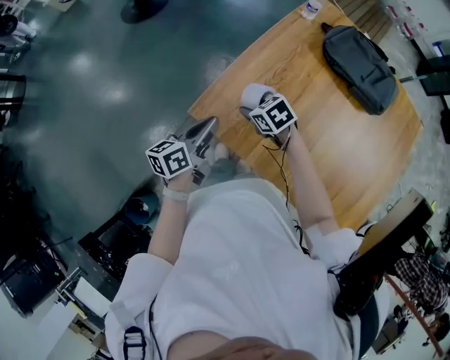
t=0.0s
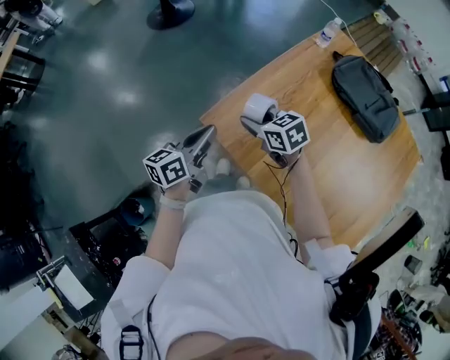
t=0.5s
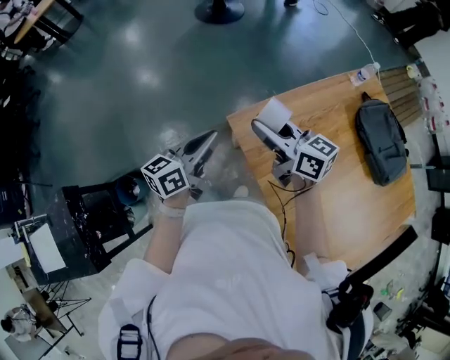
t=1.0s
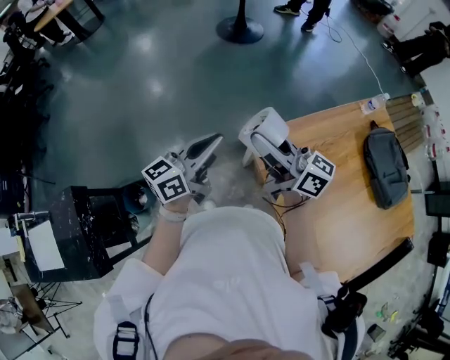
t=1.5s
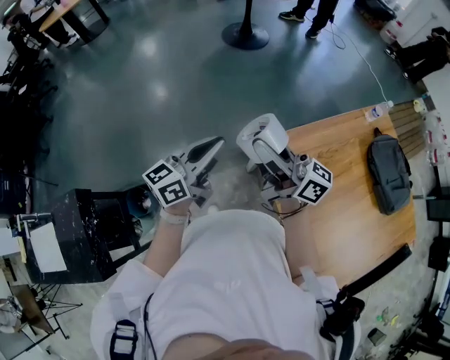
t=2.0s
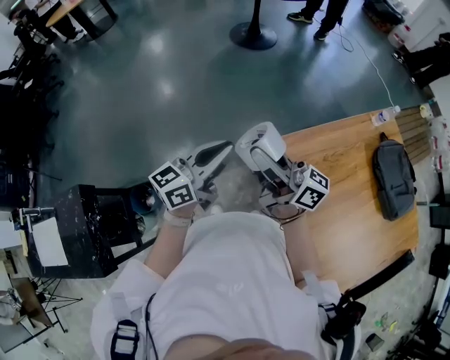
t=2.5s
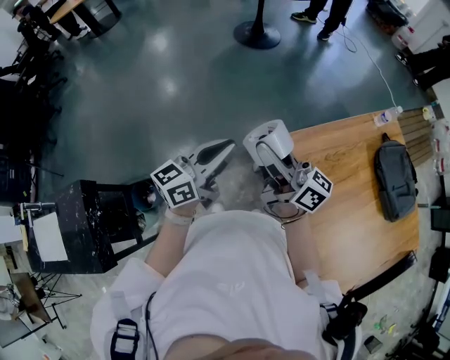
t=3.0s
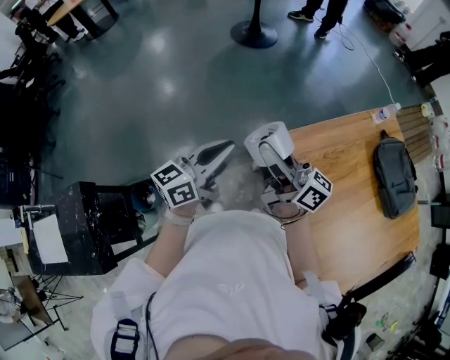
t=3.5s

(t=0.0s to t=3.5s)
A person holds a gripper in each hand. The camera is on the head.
t=0.0s - t=2.0s: The right gripper shifts some 40 cm upward and to the left, and tips its fingers upward by roughly 70 degrees. Meanwhile the left gripper goes about 30 cm to the left and upward, and turns by roughly 30 degrees.
t=2.0s - t=3.5s: The grippers make only small movements.

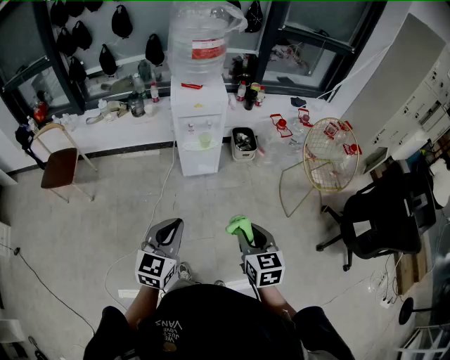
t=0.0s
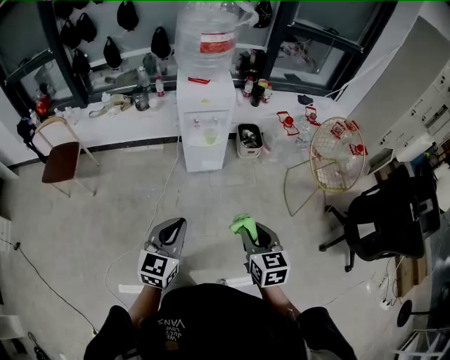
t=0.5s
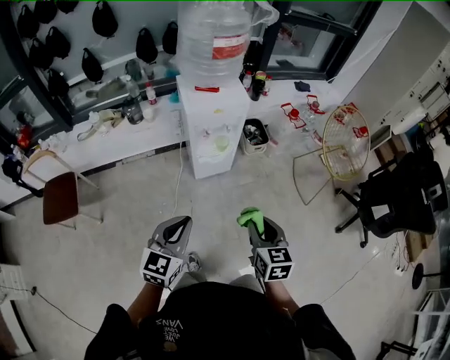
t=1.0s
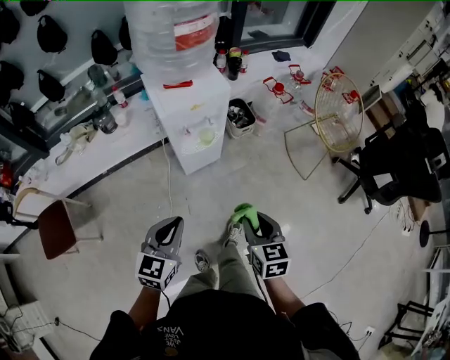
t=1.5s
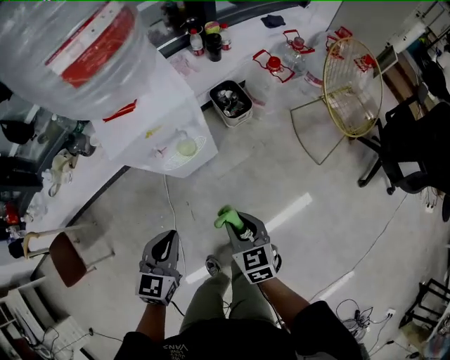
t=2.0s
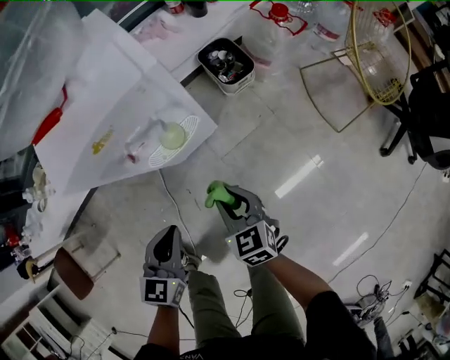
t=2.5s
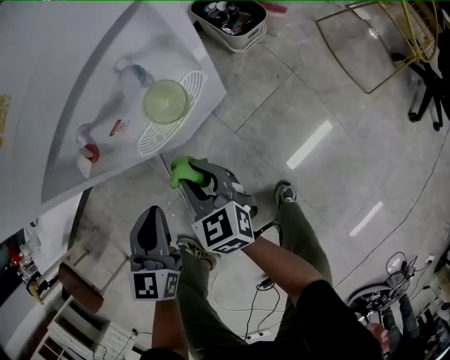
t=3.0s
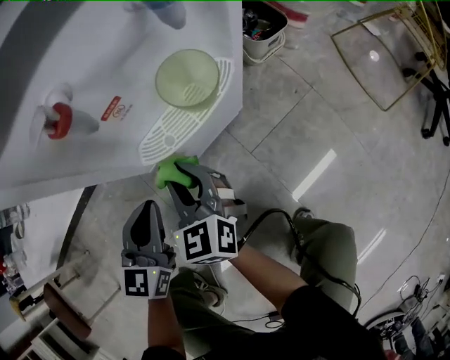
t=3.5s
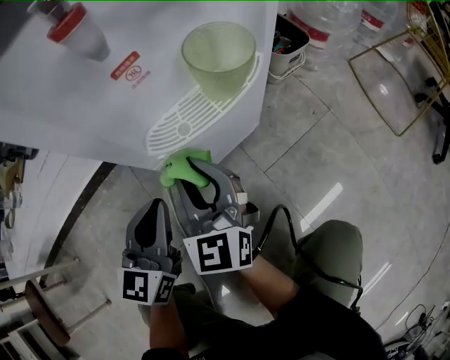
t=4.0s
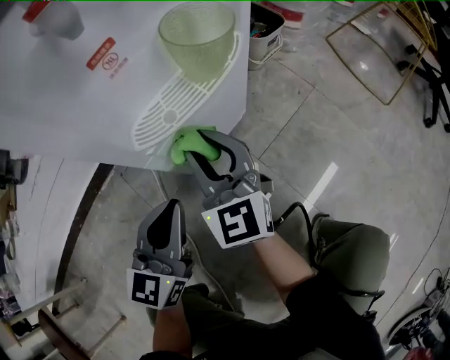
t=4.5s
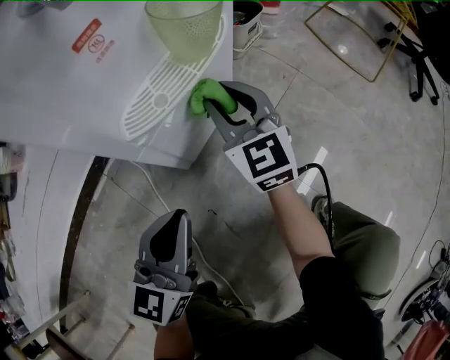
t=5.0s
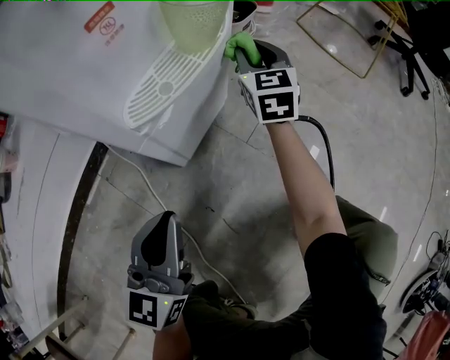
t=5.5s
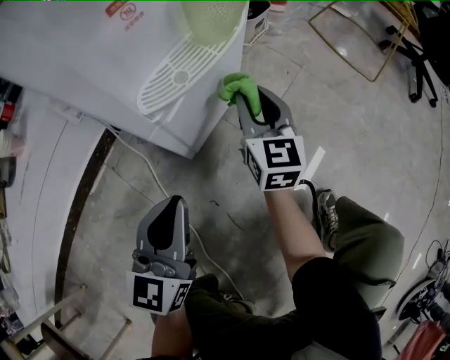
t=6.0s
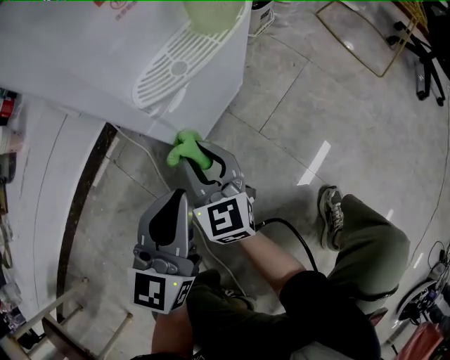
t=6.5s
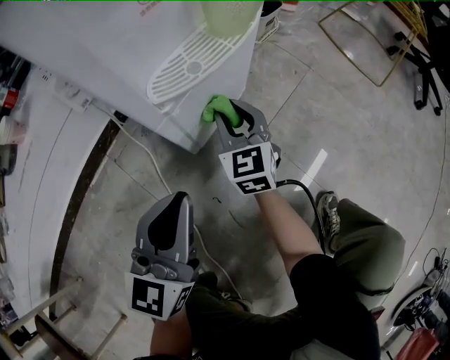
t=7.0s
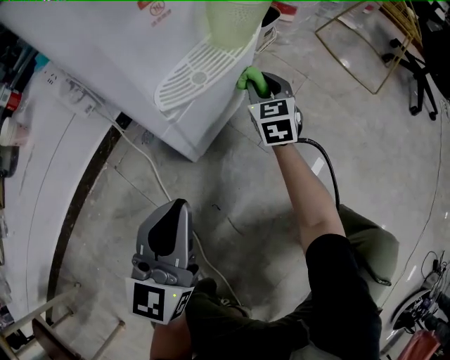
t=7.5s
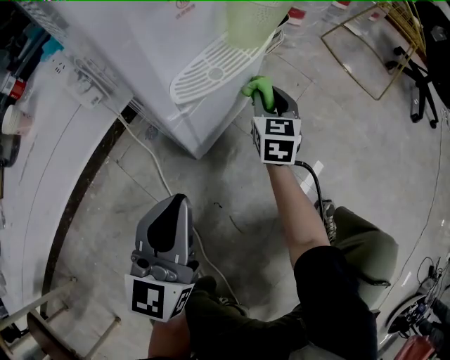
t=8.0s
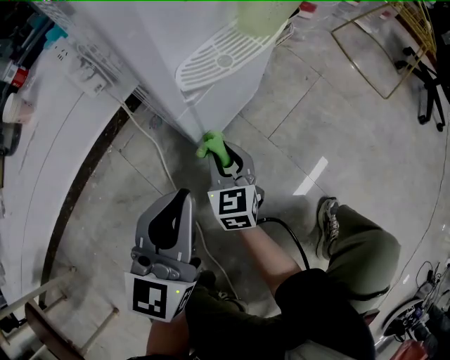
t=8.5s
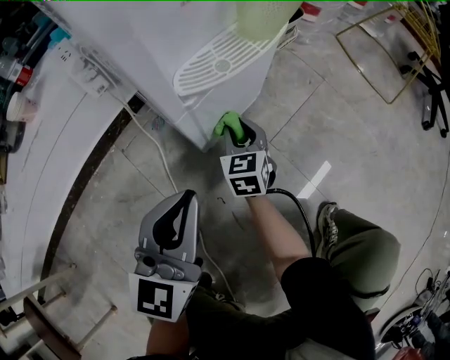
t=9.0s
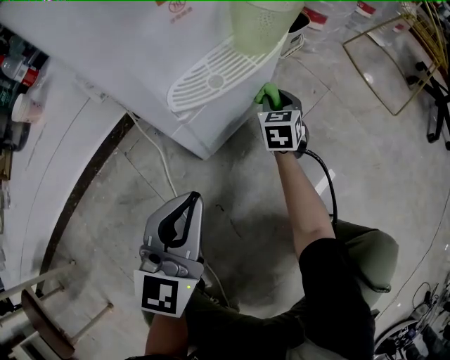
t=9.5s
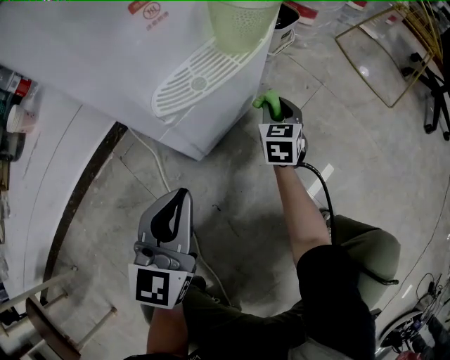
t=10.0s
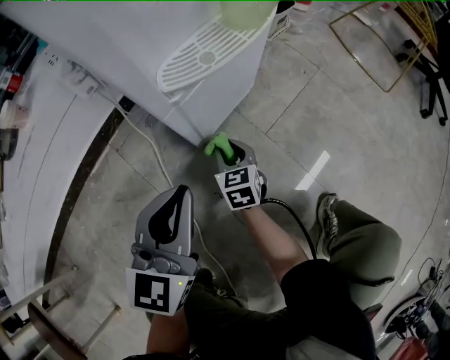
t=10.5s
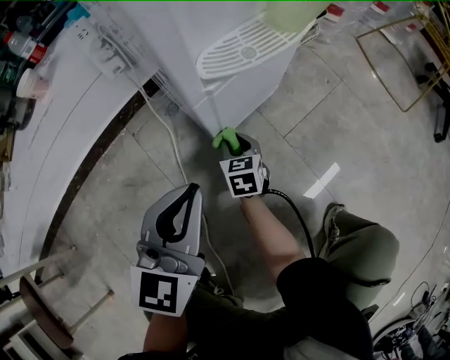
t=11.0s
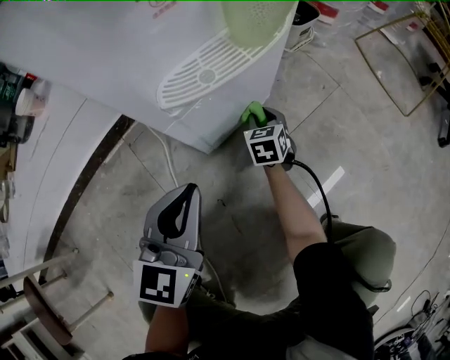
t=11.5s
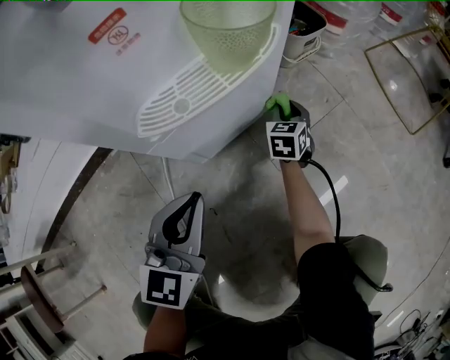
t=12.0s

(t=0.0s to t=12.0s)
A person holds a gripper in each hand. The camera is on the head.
t=0.0s - t=2.0s: The right gripper moves forward, downward and to the left, some 35 cm; the left gripper travels forward and downward by approximately 35 cm, and changes its angle by some 30 degrees.
t=2.0s - t=4.0s: The left gripper travels downward and forward by roughly 40 cm; the right gripper shifts approximately 50 cm downward, to the left and forward, and rotates roughly 30 degrees.
t=4.0s - t=6.0s: The right gripper rotates about 30 degrees.
t=6.0s - t=8.0s: The right gripper is displaced downward by some 5 cm, and travels backward and back again, roughly 10 cm each way.
t=8.0s - t=10.0s: The left gripper moves some 5 cm. The right gripper shifts some 5 cm downward, and moves roughly 15 cm backward and comes back.
t=10.0s - t=12.0s: The left gripper moves roughly 5 cm; the right gripper goes roughly 5 cm downward, and moves approximately 15 cm backward and comes back.

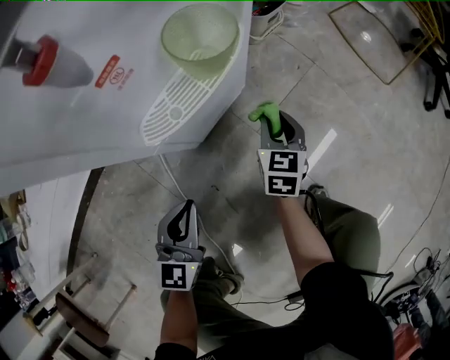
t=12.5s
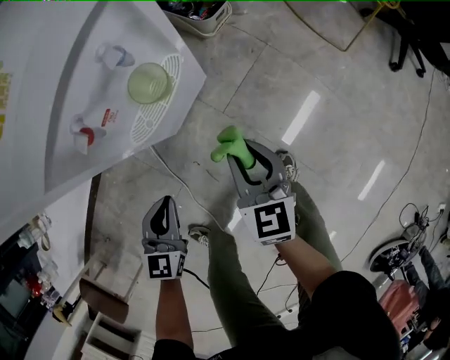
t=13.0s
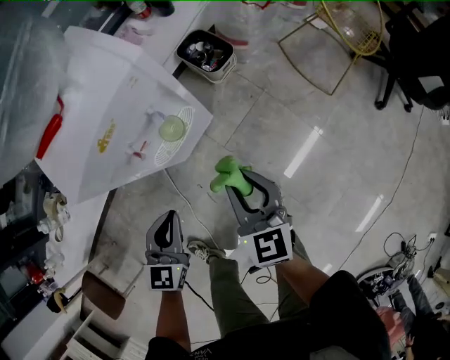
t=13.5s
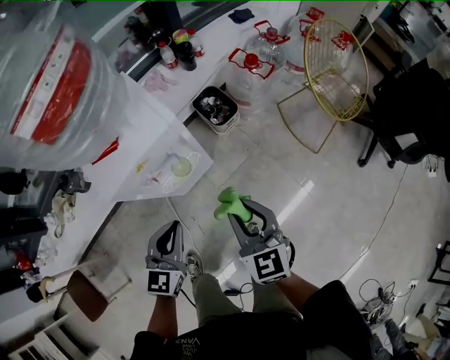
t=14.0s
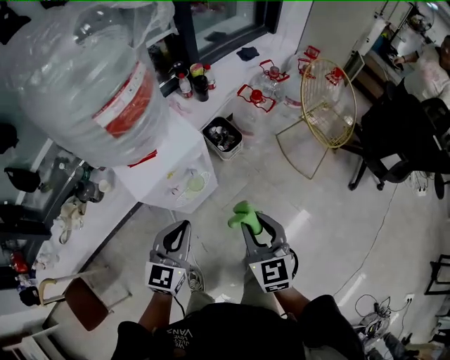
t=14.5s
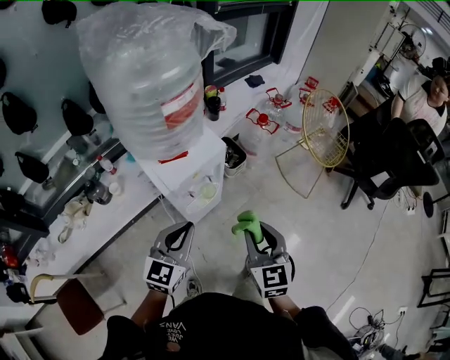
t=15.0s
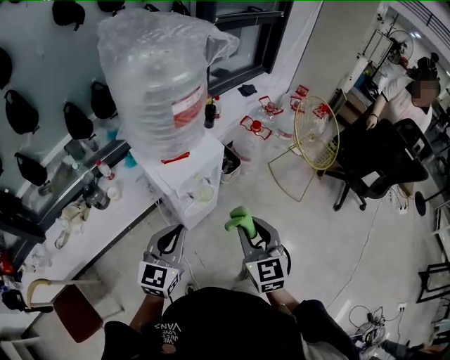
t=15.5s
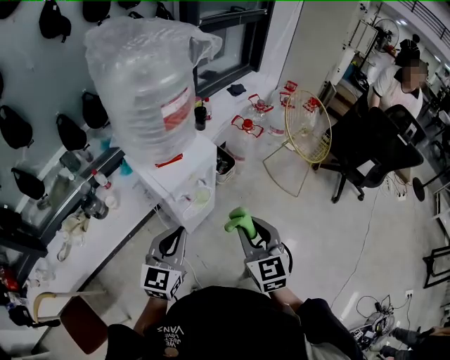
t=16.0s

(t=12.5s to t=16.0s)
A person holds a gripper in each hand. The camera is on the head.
t=12.5s - t=14.5s: Both grippers travel together upward, roughly 60 cm. The right gripper turns by about 30 degrees.
t=14.5s - t=16.0s: The left gripper shifts some 15 cm to the left, backward and upward. Meanwhile the right gripper moves backward, to the left and upward, approximately 15 cm.

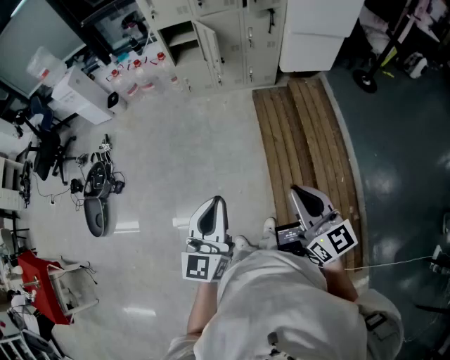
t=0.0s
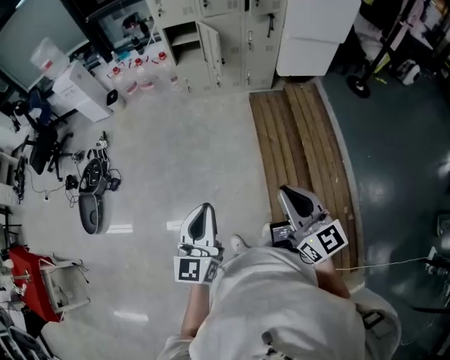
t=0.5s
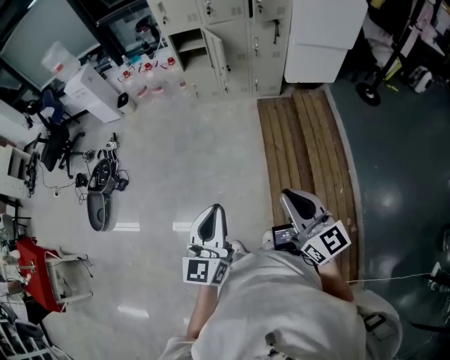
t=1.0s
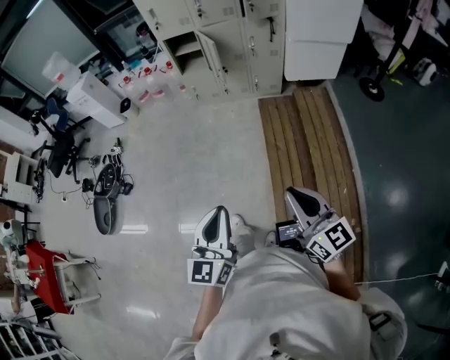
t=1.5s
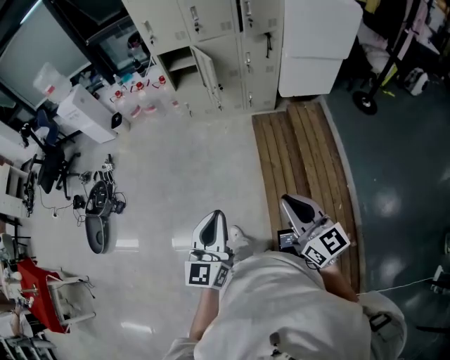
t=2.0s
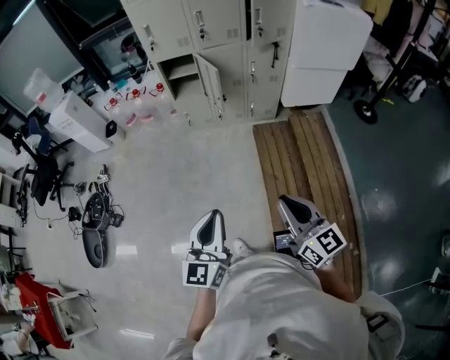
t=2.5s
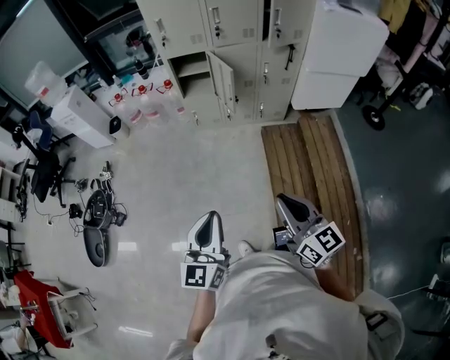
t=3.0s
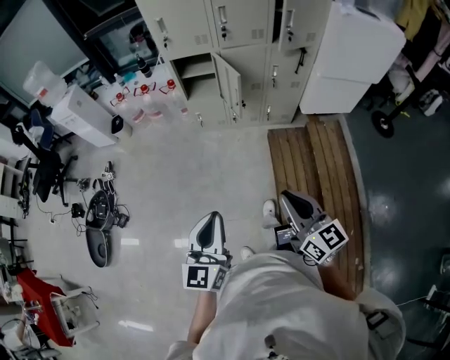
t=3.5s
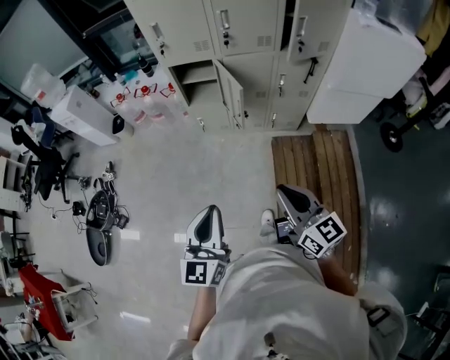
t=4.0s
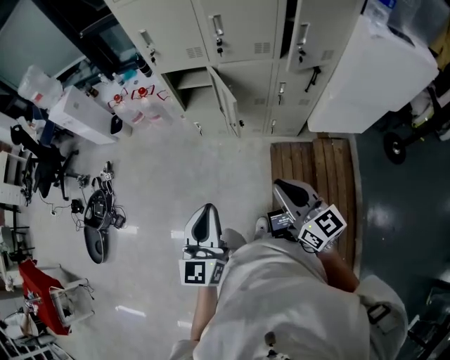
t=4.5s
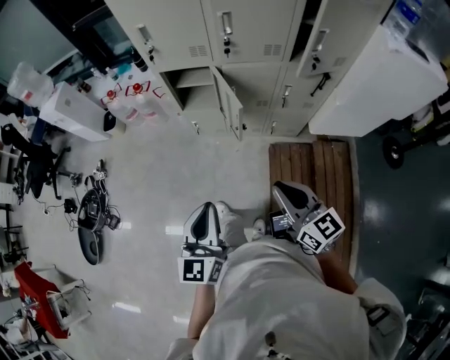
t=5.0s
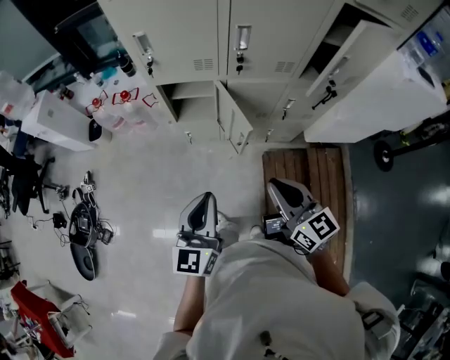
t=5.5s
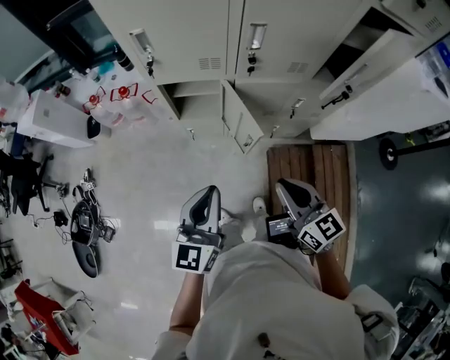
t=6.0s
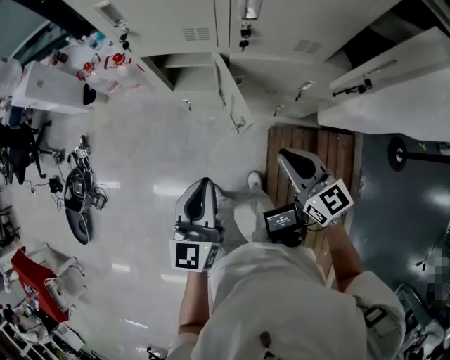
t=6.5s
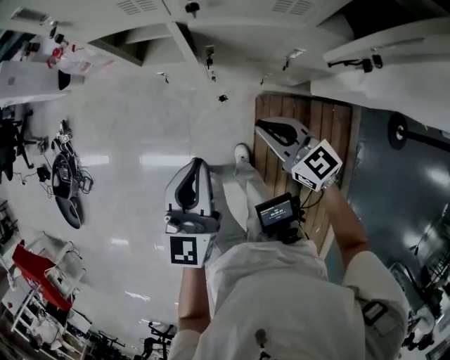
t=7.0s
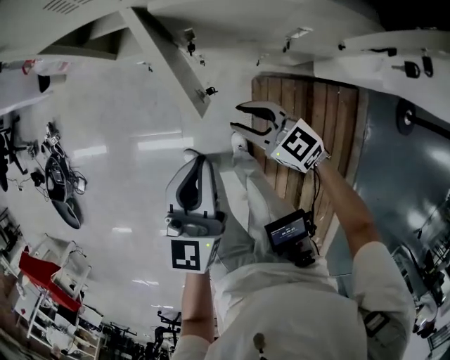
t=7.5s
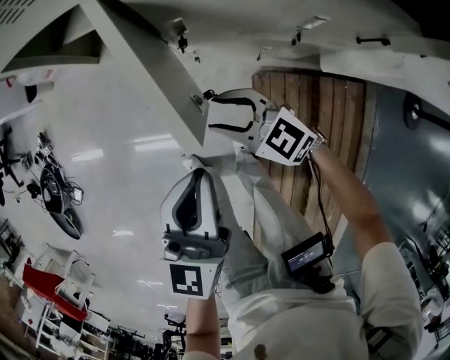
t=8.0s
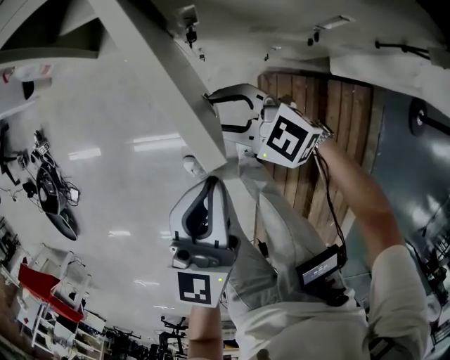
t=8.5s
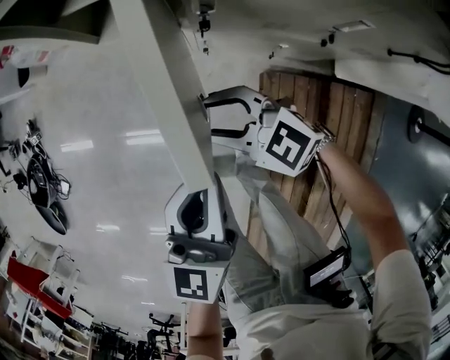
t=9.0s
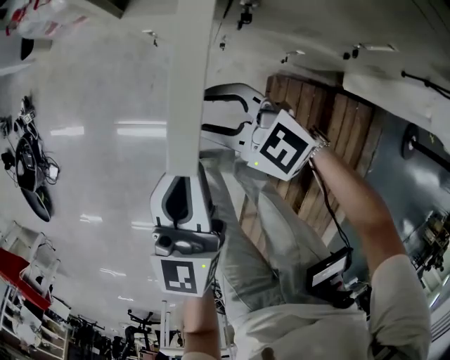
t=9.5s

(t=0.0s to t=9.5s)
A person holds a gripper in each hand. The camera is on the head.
t=0.0s - t=2.0s: Both grippers travel together forward, roughly 5 cm. The right gripper moves roughly 5 cm to the left and comes back, while the left gripper reaches about 5 cm to the left, then returns.
t=2.0s - t=4.0s: Both grippers travel together forward, roughly 40 cm.
t=4.0s - t=5.5s: The two grippers go roughly 30 cm forward.
t=5.5s - t=7.5s: The left gripper travels to the right, downward and forward by approximately 25 cm, while the right gripper travels downward and forward by some 35 cm, rotates some 40 degrees, and opens up.
t=7.5s - t=9.5s: The left gripper moves downward, to the left and forward, about 15 cm. The right gripper goes approximately 20 cm to the left, forward and downward, and changes its angle by some 20 degrees.
